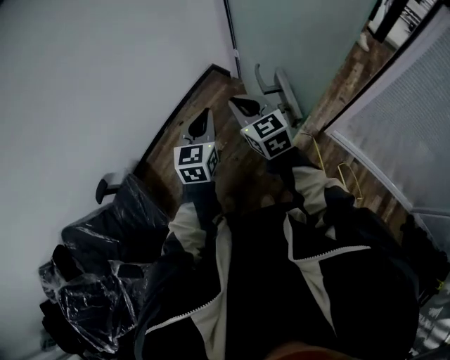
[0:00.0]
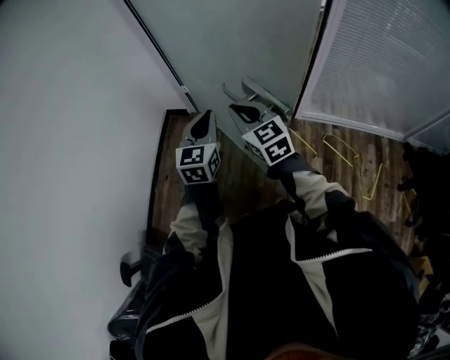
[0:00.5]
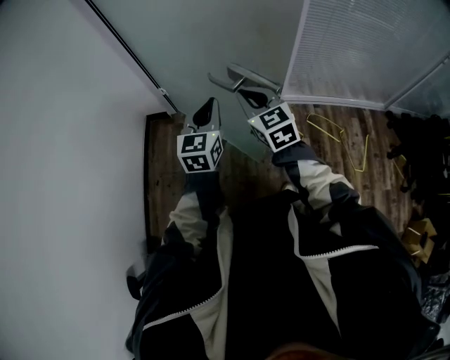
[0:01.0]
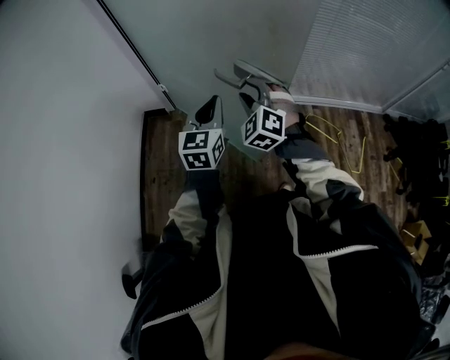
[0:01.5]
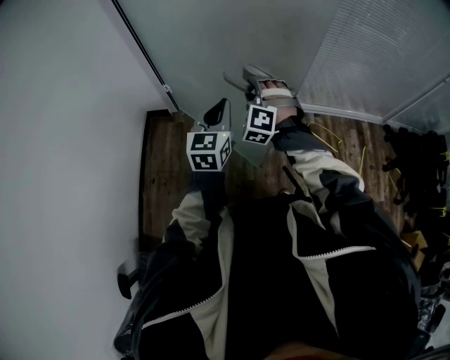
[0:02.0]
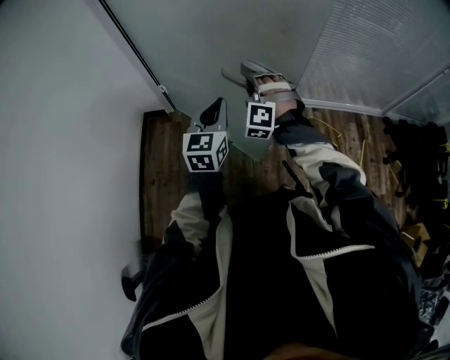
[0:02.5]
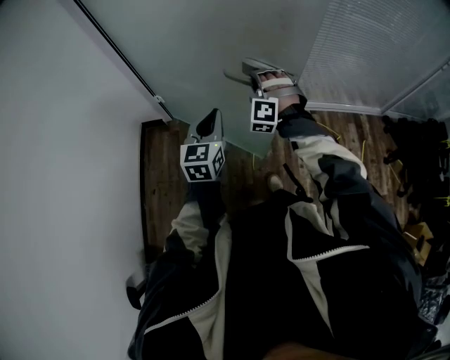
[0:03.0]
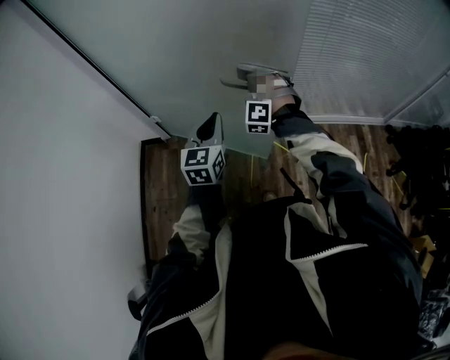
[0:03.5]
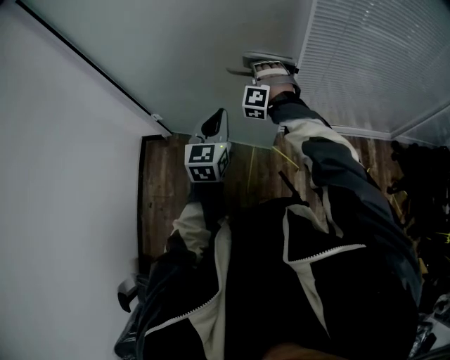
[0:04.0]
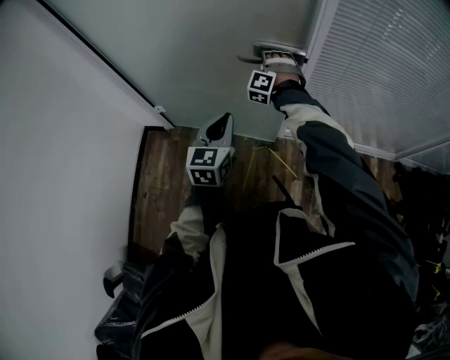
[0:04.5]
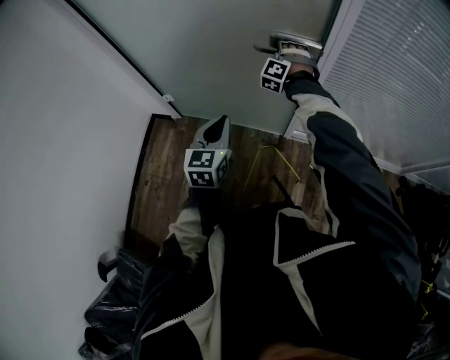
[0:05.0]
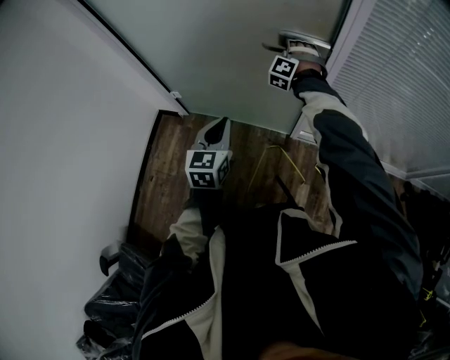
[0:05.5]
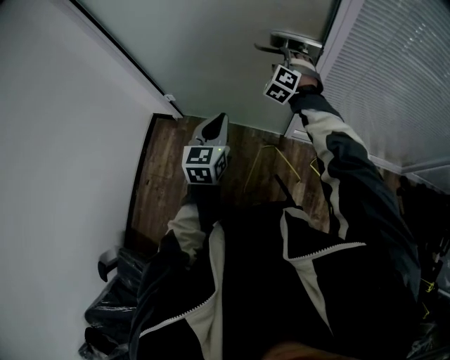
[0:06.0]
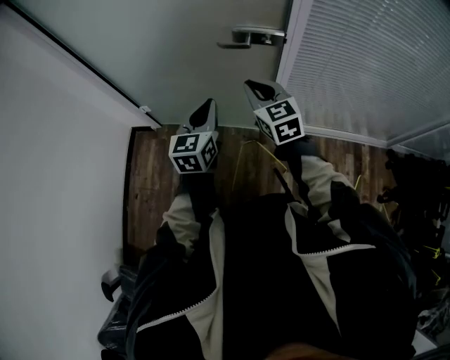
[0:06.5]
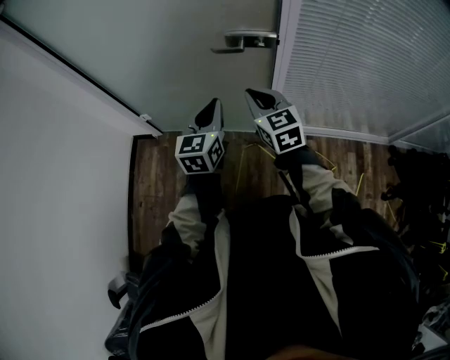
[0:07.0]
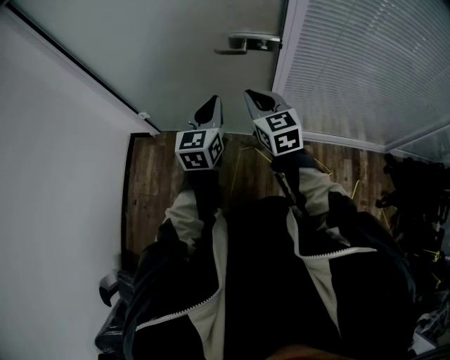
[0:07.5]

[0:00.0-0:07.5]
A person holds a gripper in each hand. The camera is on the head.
0:00.0 to 0:02.0: The left gripper changes place by some 10 cm, and turns by some 40 degrees. The right gripper shifts by approximately 15 cm, turns by about 80 degrees, and opens.
0:02.0 to 0:04.0: The left gripper moves forward and to the right, approximately 25 cm. The right gripper goes approximately 30 cm forward, and closes its fingers.
0:04.0 to 0:05.5: The right gripper heads forward, covering about 15 cm.
0:05.5 to 0:07.5: The right gripper shifts some 25 cm backward, rotates around the line of its fingers by roughly 80 degrees, clockwise from behind, and closes up. Meanwhile the left gripper shifts about 10 cm to the right and forward.

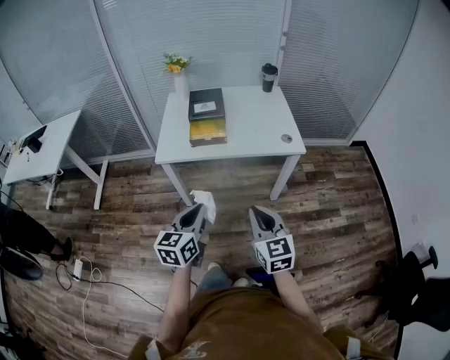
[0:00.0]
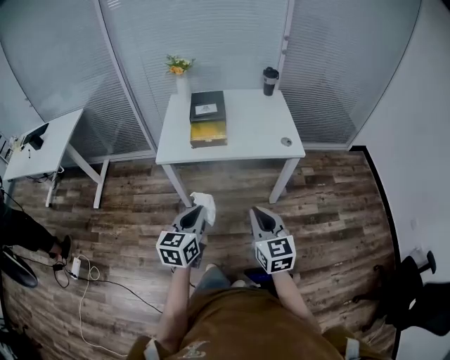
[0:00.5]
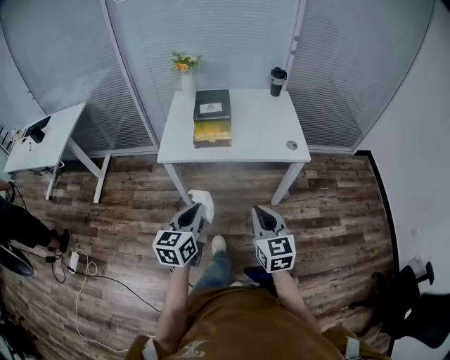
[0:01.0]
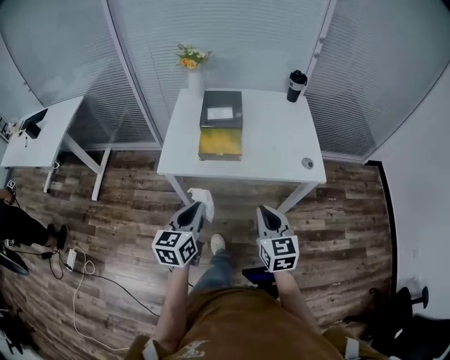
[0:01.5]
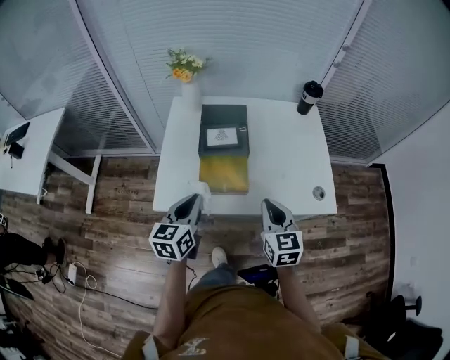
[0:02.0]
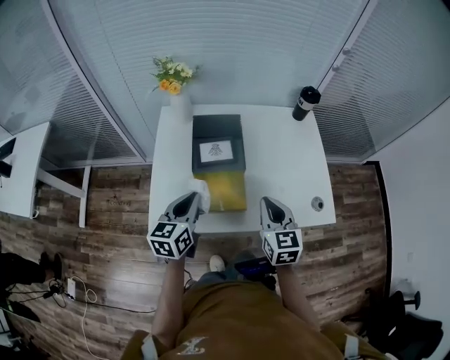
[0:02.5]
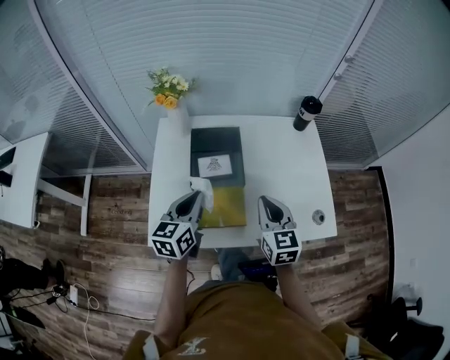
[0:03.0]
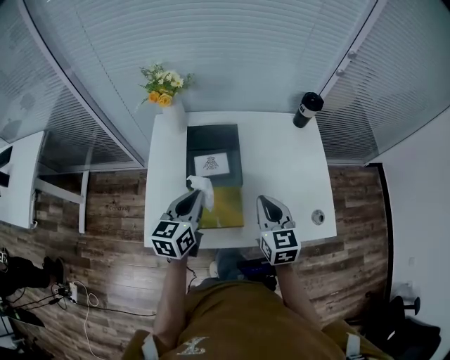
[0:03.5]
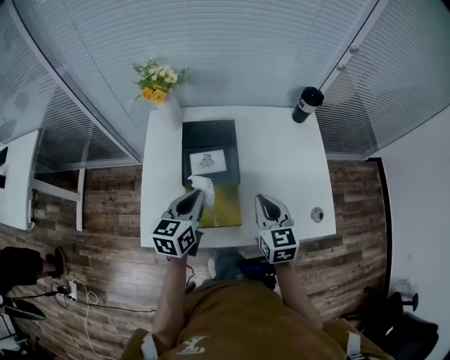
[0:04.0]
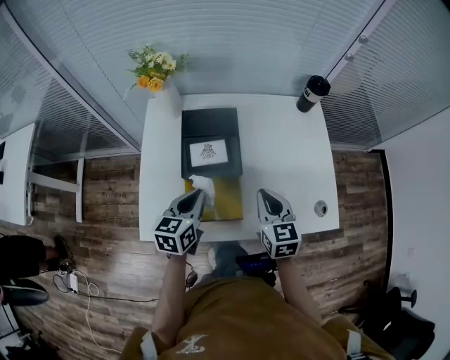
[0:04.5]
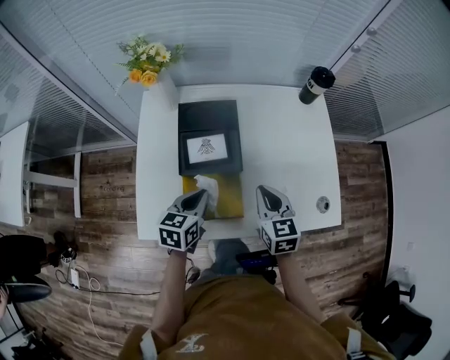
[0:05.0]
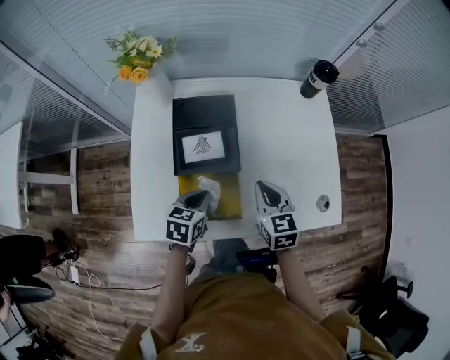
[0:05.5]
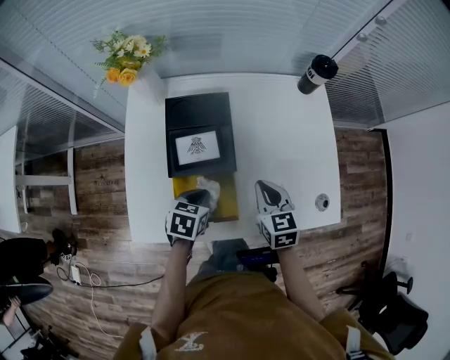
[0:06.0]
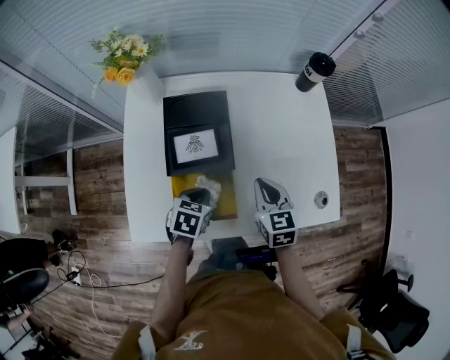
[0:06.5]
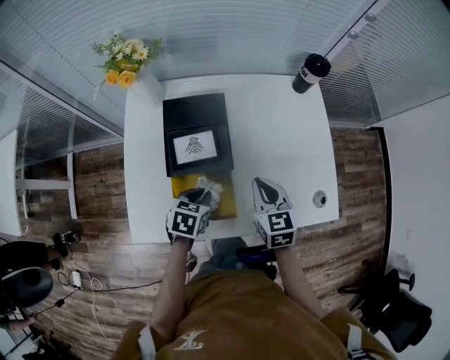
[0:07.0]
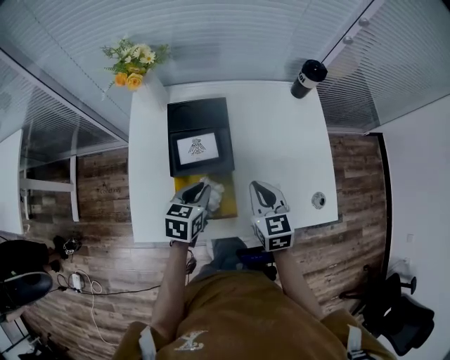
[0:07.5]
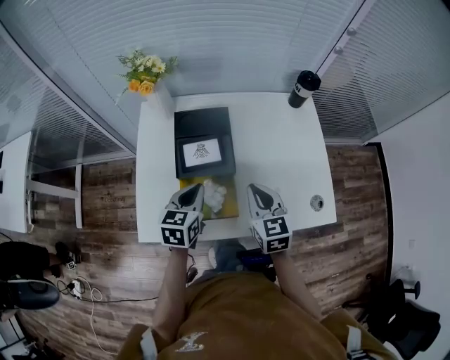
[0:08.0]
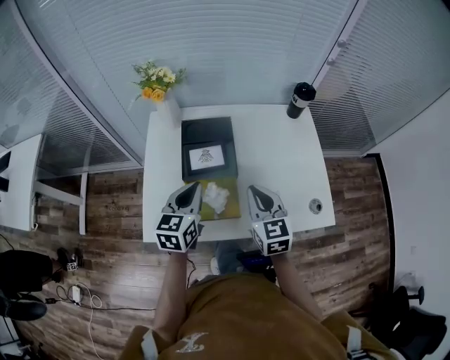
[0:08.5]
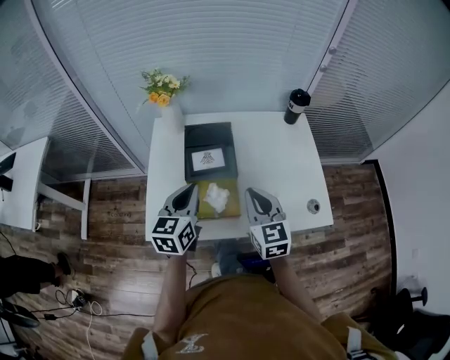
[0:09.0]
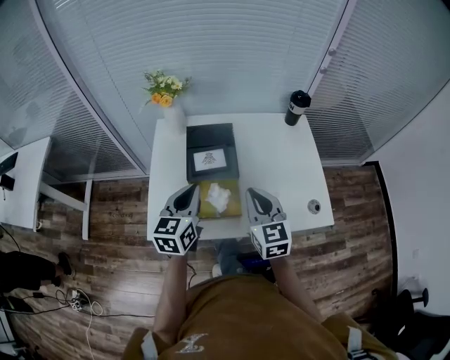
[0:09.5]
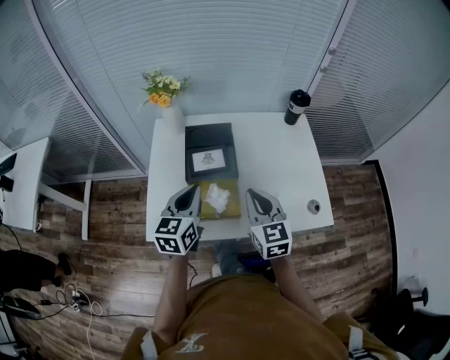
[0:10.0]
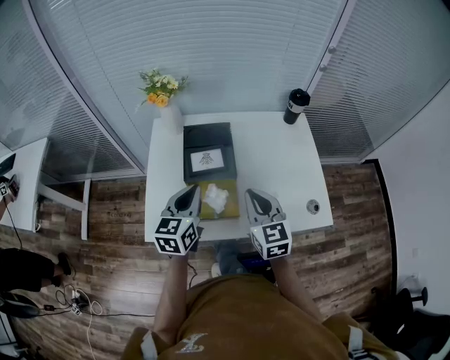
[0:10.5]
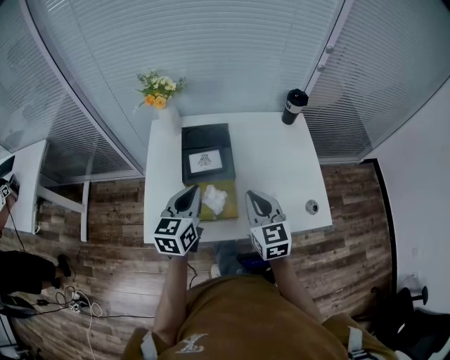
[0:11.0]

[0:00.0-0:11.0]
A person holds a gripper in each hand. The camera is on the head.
0:00.0 to 0:02.0: Both grippers move forward, some 35 cm.
0:02.0 to 0:03.5: The grippers both shift forward by about 15 cm.
0:03.5 to 0:05.5: The left gripper is displaced downward by some 15 cm, and swivels about 30 degrees. The right gripper moves downward, roughly 10 cm.
0:05.5 to 0:07.5: The grippers stay close to where they were, moving slightly.
0:07.5 to 0:09.0: The left gripper travels upward by some 15 cm, and turns by some 30 degrees, while the right gripper heads upward and backward, covering some 15 cm.
0:09.0 to 0:11.0: The grippers make only small movements.

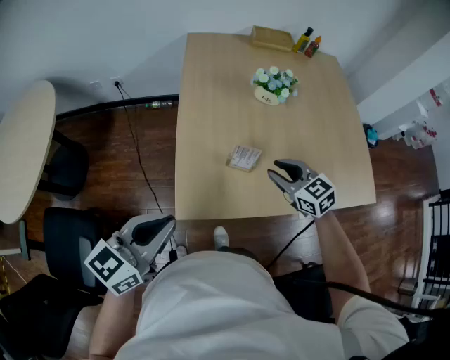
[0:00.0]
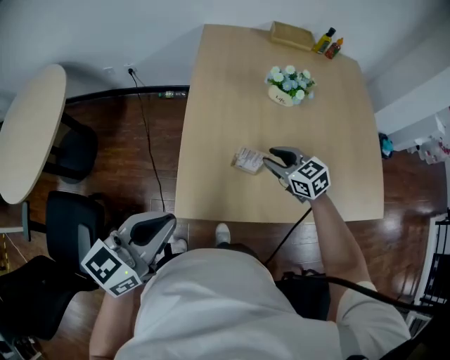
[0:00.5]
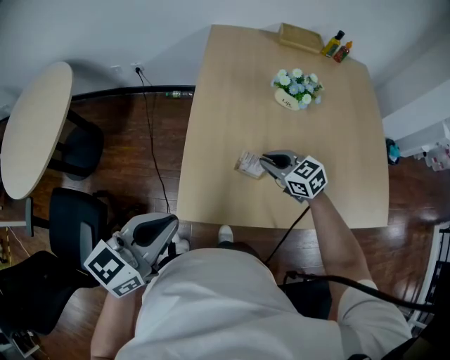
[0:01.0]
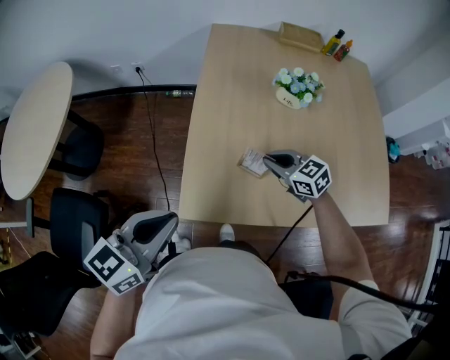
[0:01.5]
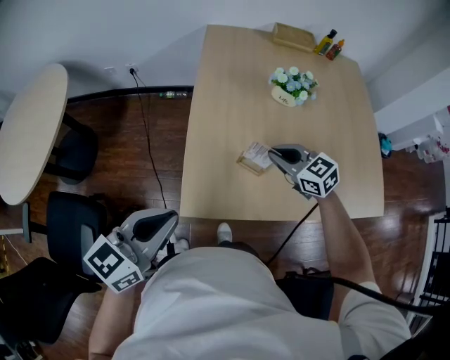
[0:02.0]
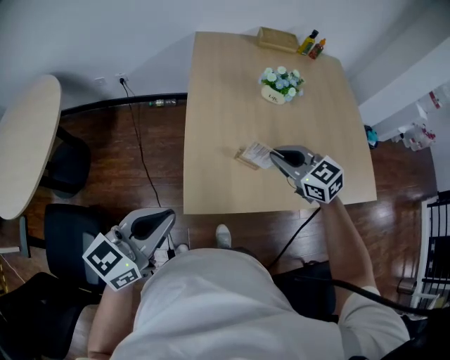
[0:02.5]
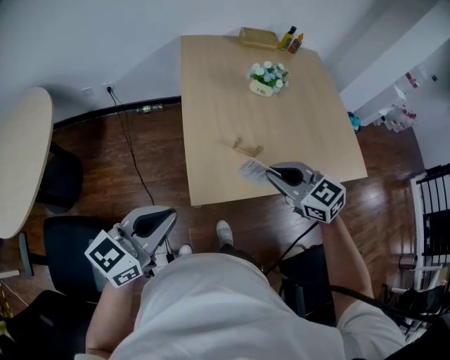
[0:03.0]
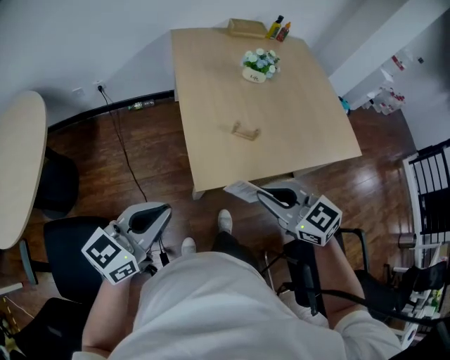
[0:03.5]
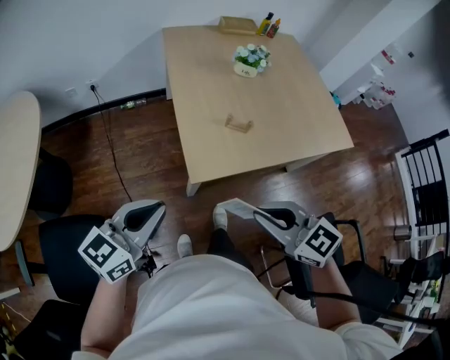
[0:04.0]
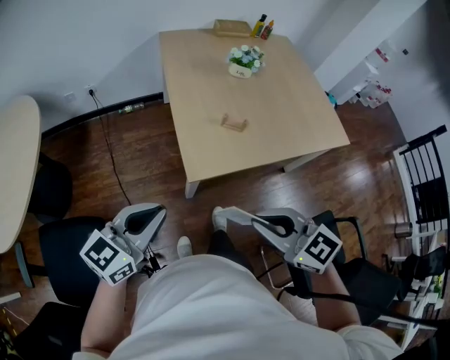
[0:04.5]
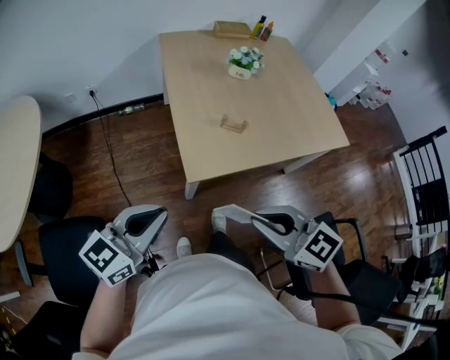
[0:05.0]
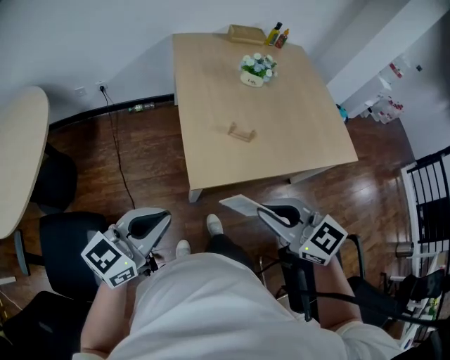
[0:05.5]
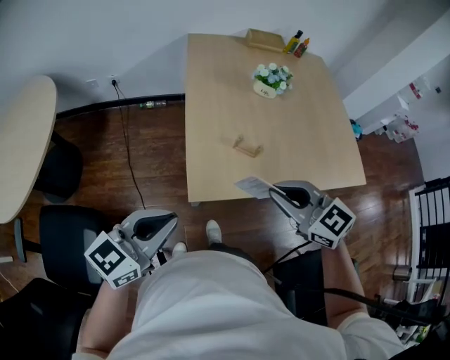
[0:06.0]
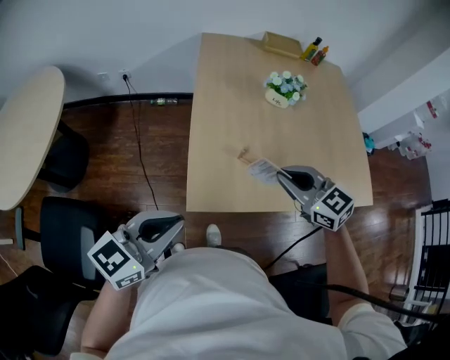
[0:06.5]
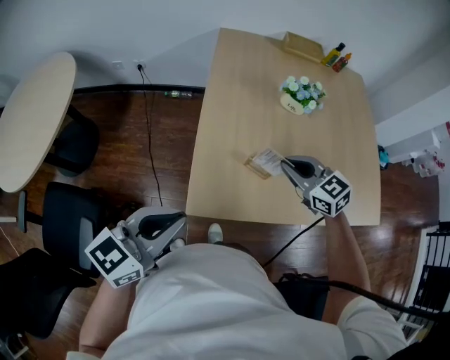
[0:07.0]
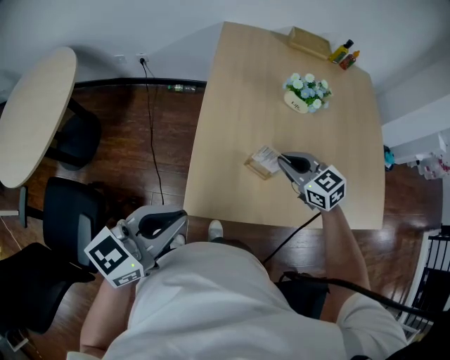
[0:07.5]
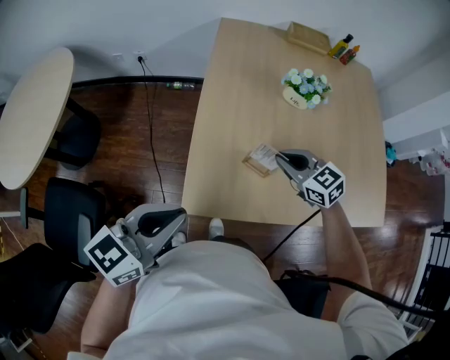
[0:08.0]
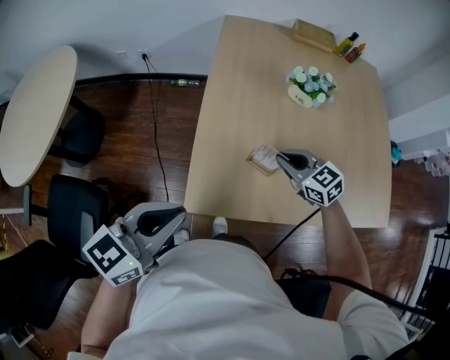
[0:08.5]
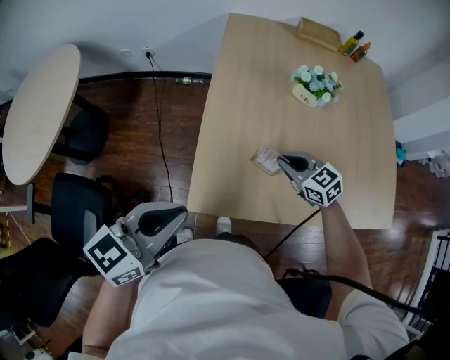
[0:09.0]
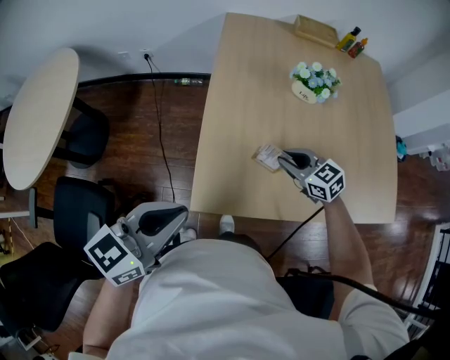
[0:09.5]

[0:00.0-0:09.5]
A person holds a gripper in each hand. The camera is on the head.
0:00.0 to 0:02.0: The right gripper heads forward, covering about 5 cm, and closes up.
0:02.0 to 0:04.0: The right gripper is displaced backward and to the left by approximately 40 cm. Meanwhile the left gripper moves to the left and backward, some 15 cm.
0:04.0 to 0:05.5: The grippers stay close to where they were, moving slightly.
0:05.5 to 0:07.5: The right gripper travels forward by about 35 cm. The left gripper moves forward and to the right, about 15 cm.
0:07.5 to 0:09.5: The right gripper moves downward, approximately 5 cm.
